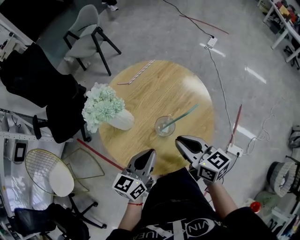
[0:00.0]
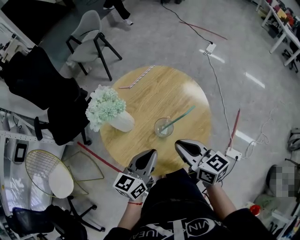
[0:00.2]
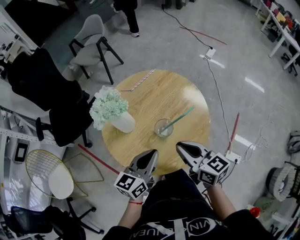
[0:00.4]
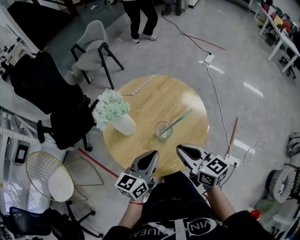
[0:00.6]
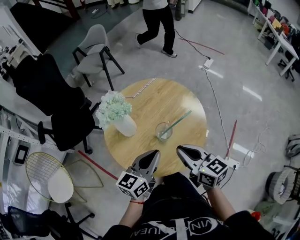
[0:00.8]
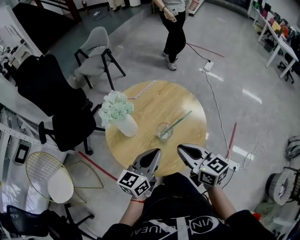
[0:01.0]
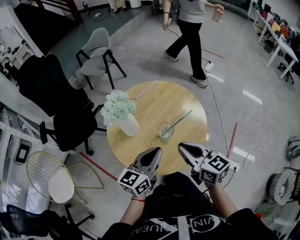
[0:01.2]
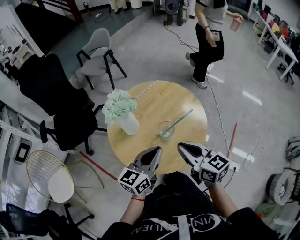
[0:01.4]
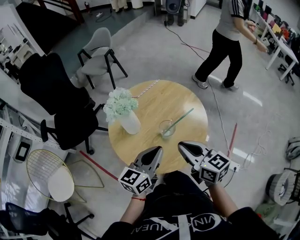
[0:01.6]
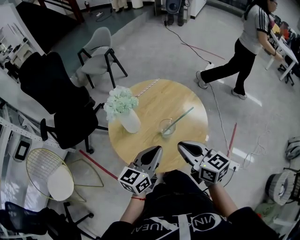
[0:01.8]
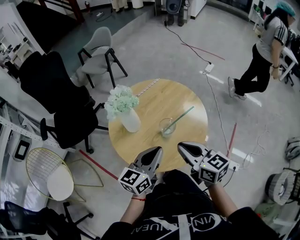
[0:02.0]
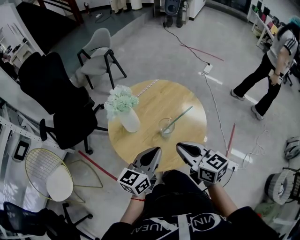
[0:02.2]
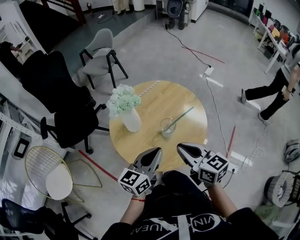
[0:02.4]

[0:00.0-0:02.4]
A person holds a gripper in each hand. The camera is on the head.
0.0 to 1.2 s: The two grippers go roughly 5 cm upward.
1.2 to 2.4 s: The grippers move only a little.

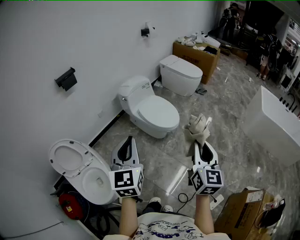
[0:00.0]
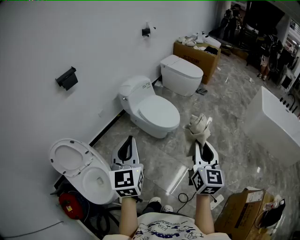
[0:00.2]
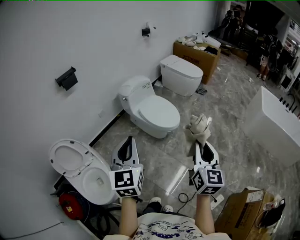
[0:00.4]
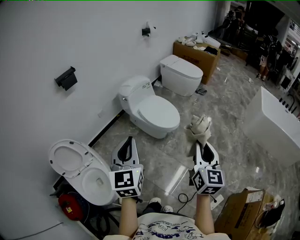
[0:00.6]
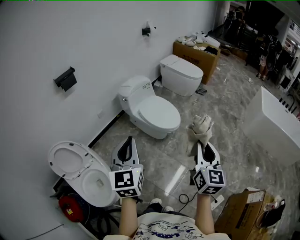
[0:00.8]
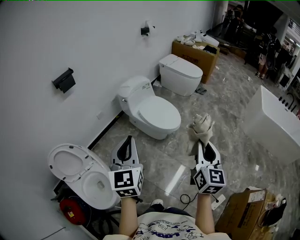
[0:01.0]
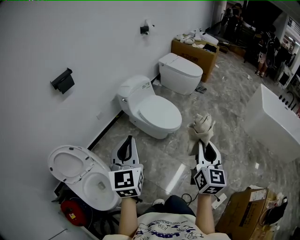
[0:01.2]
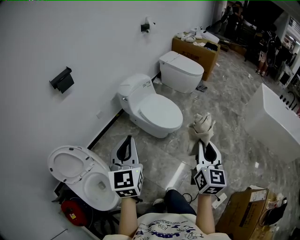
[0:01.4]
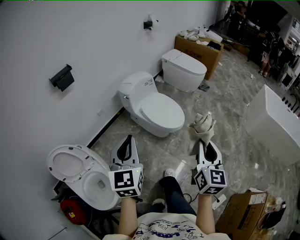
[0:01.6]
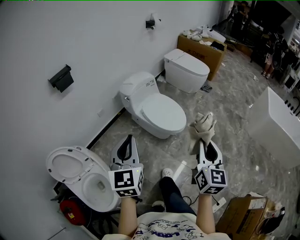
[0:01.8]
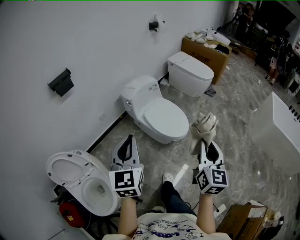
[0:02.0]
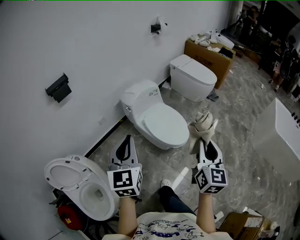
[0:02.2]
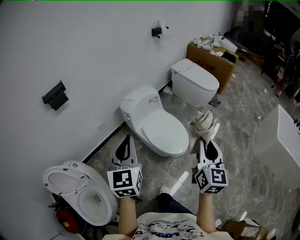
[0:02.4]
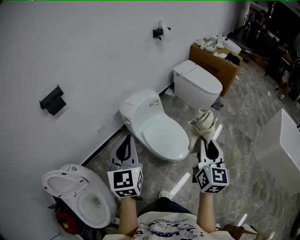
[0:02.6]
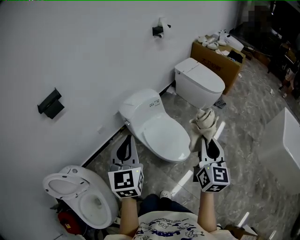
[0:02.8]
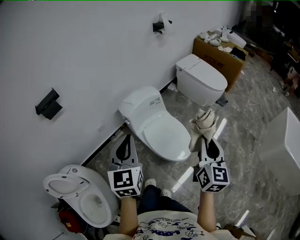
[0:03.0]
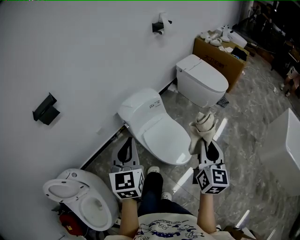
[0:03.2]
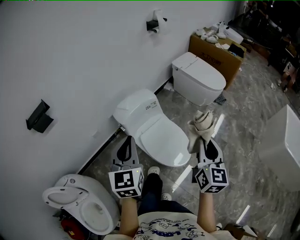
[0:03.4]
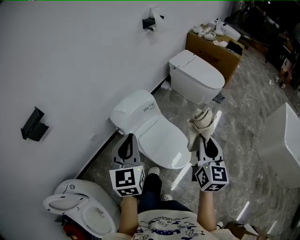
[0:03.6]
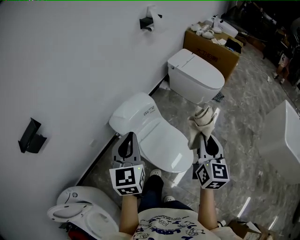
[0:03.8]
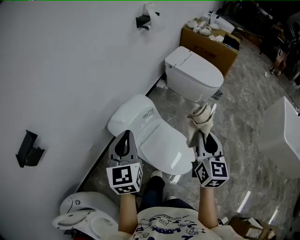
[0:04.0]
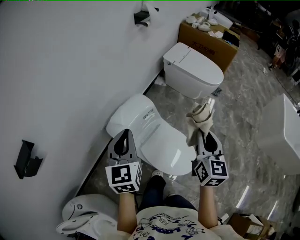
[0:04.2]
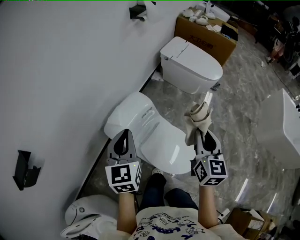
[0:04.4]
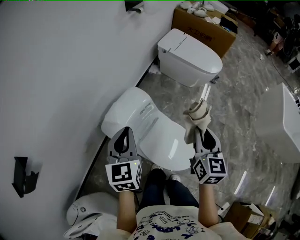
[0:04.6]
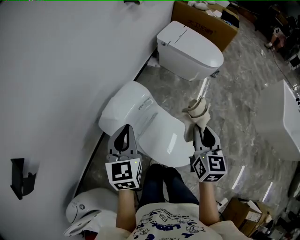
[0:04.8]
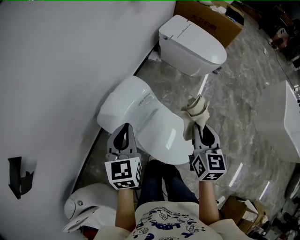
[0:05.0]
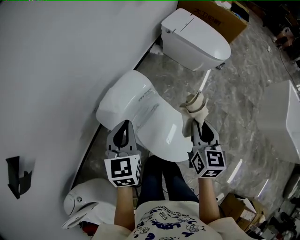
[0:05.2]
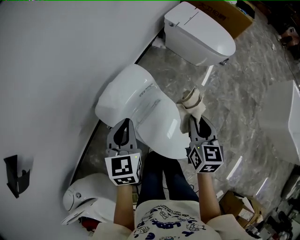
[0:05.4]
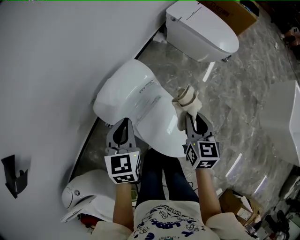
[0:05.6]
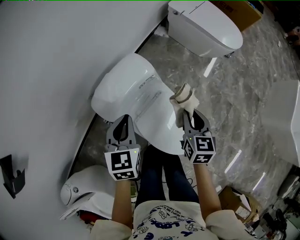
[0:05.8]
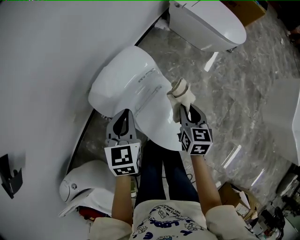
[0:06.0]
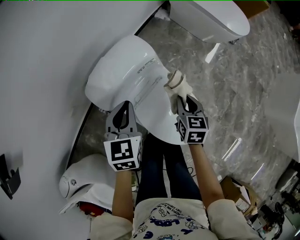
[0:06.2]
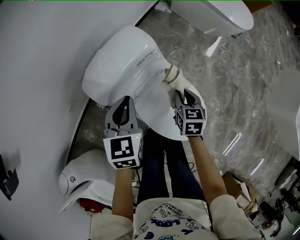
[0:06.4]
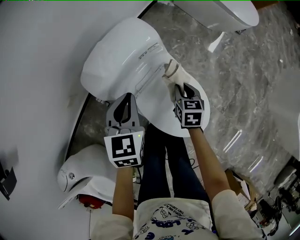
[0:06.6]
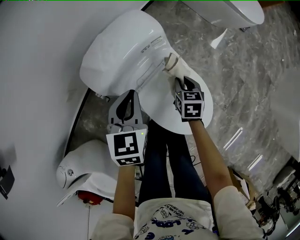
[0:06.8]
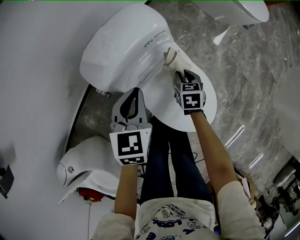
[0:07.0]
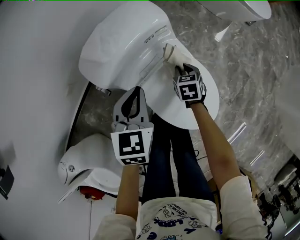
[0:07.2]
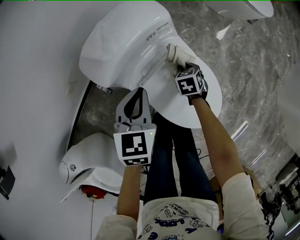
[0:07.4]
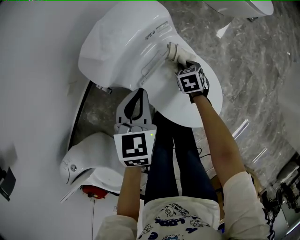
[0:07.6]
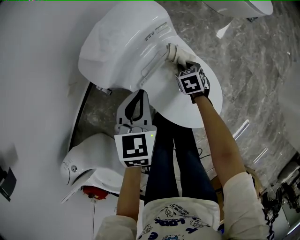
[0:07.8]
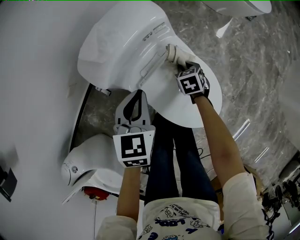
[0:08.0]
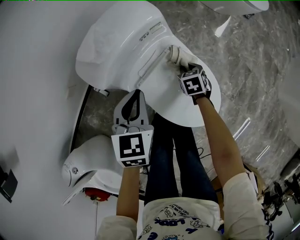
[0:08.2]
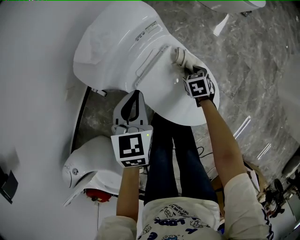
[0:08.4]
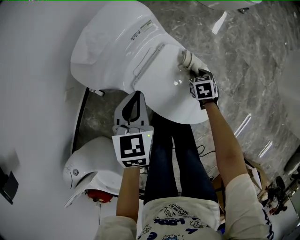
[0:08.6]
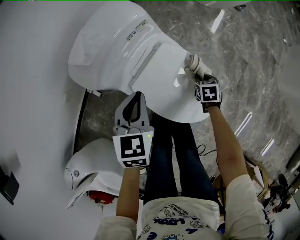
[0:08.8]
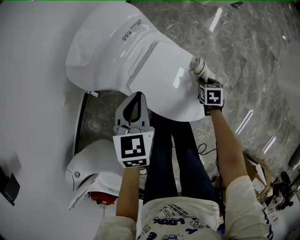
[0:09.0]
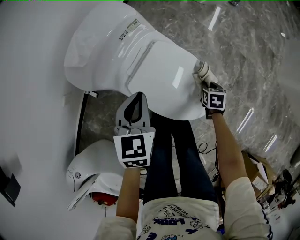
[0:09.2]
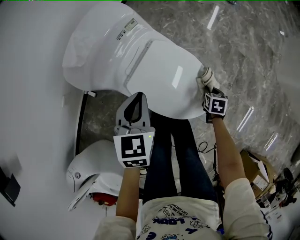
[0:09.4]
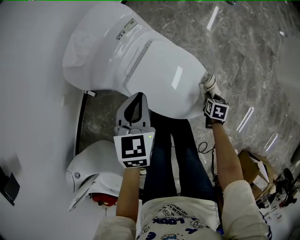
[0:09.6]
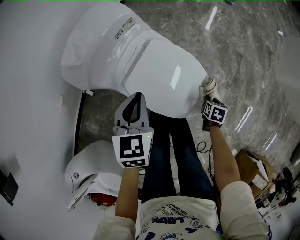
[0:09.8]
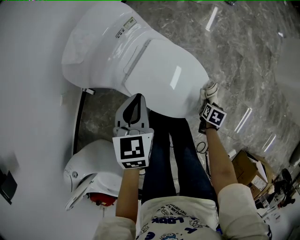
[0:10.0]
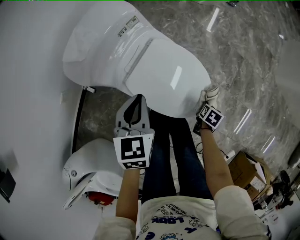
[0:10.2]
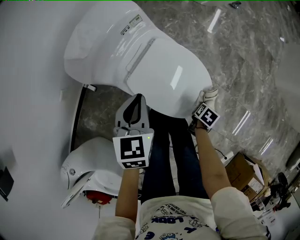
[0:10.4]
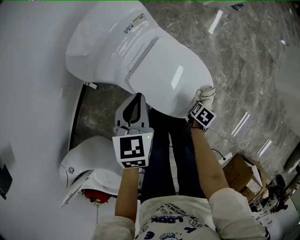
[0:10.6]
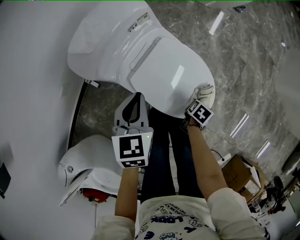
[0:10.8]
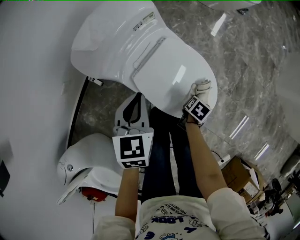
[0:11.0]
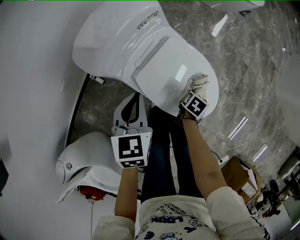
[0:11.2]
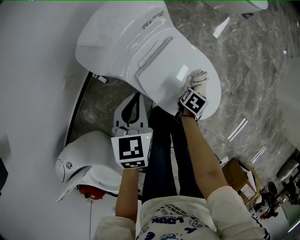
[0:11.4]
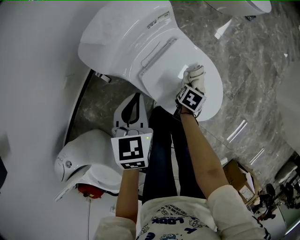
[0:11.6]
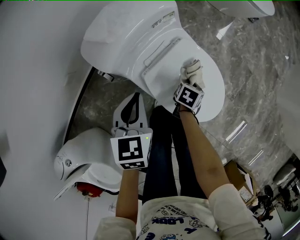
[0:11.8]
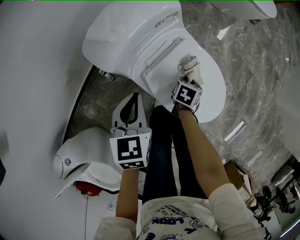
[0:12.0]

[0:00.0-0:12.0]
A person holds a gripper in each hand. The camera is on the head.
0.0 to 1.6 s: The two grippers go some 10 cm forward and to the left.
1.6 to 3.0 s: The two grippers go approximately 40 cm forward.
3.0 to 4.4 s: Both grippers move forward, about 30 cm.
4.4 to 6.0 s: Both grippers move downward, roughly 25 cm. The right gripper rotates roughly 30 degrees.
6.0 to 7.6 s: The right gripper heads downward, covering roughly 30 cm, and turns by roughly 30 degrees, while the left gripper travels downward by about 15 cm.
7.6 to 9.0 s: The left gripper is displaced to the right by about 5 cm. Meanwhile the right gripper heads to the right and backward, covering approximately 20 cm, and swivels about 20 degrees.
9.0 to 10.4 s: The right gripper changes place by about 15 cm, and rotates approximately 40 degrees.
10.4 to 12.0 s: The left gripper moves about 10 cm. Meanwhile the right gripper shifts by approximately 25 cm, and swivels about 30 degrees.

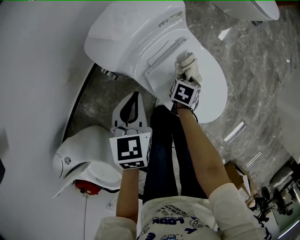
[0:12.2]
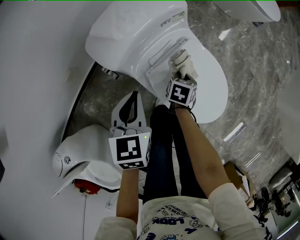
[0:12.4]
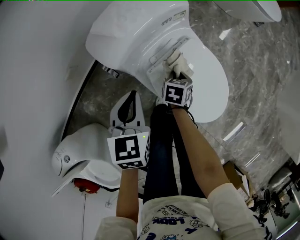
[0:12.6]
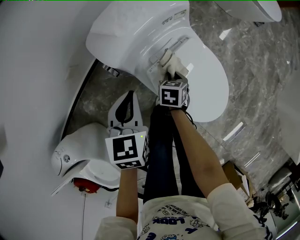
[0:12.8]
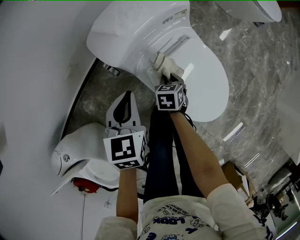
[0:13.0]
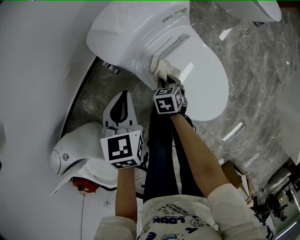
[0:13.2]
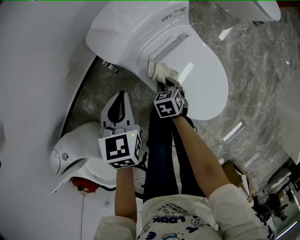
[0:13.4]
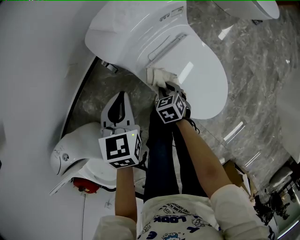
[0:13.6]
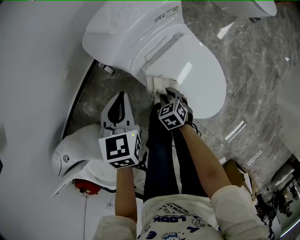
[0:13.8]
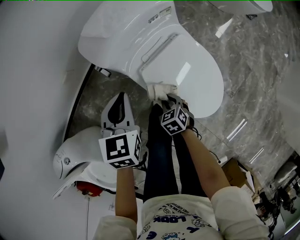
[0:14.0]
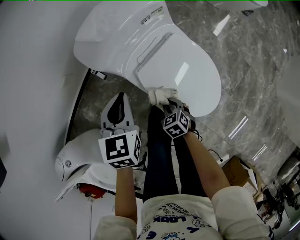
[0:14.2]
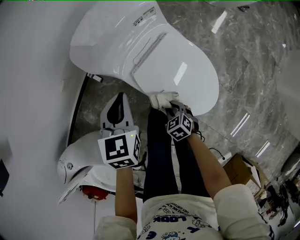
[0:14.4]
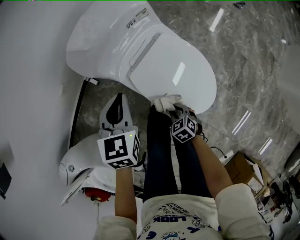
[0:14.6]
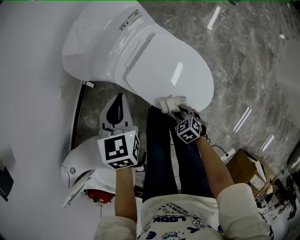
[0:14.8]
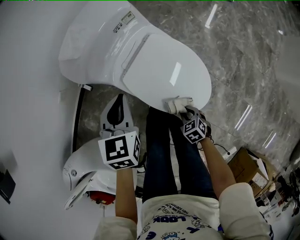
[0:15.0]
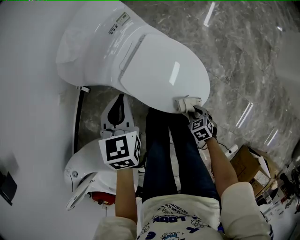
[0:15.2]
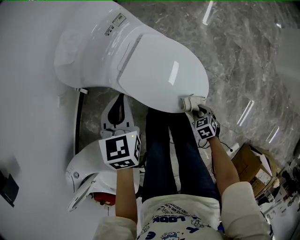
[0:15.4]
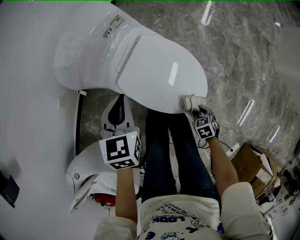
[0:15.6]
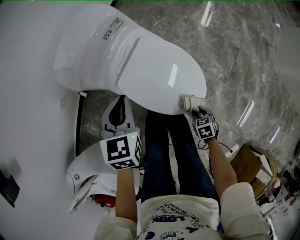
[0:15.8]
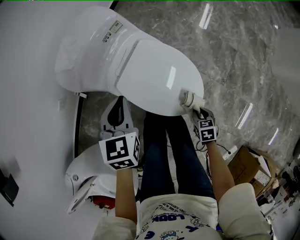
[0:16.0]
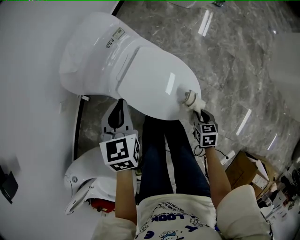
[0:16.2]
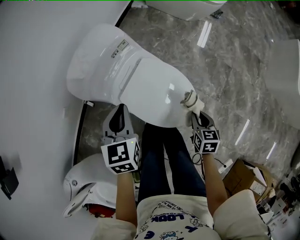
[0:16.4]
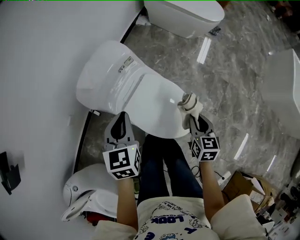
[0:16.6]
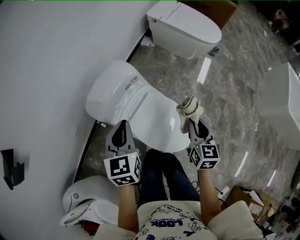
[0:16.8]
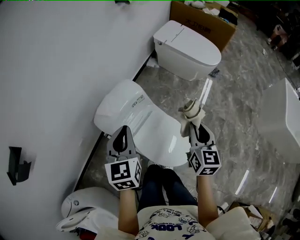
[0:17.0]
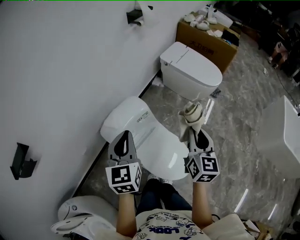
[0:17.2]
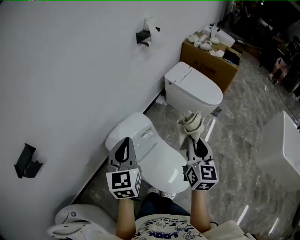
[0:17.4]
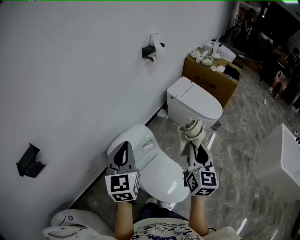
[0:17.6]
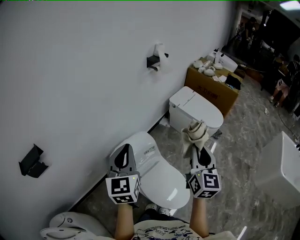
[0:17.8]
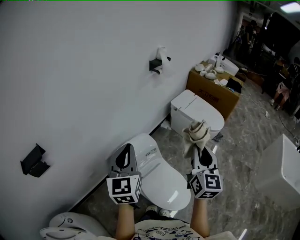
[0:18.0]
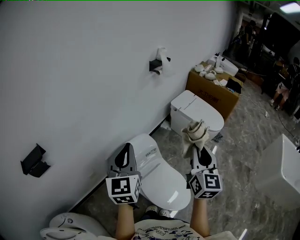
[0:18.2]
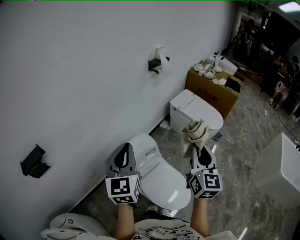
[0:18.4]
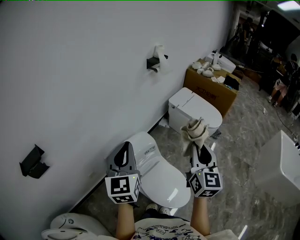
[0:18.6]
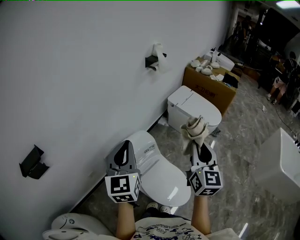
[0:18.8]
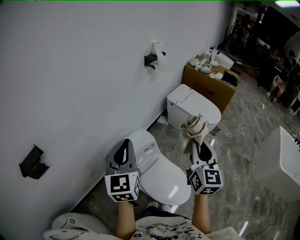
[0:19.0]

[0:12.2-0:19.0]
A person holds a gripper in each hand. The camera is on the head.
12.2 to 13.6 s: The left gripper changes place by roughly 5 cm. Meanwhile the right gripper moves some 15 cm, and twists roughly 40 degrees counterclockwise, seen from behind.
13.6 to 15.0 s: The left gripper travels to the right by roughly 10 cm, while the right gripper travels backward and to the right by about 25 cm.
15.0 to 16.2 s: The right gripper moves roughly 15 cm, and turns by about 40 degrees; the left gripper ends up roughly 5 cm from where it was.
16.2 to 17.6 s: Both grippers travel together upward, about 50 cm. The left gripper angles its fingers upward, by about 30 degrees. The right gripper tips its fingers upward by some 60 degrees.
17.6 to 19.0 s: Both grippers move upward, roughly 5 cm.

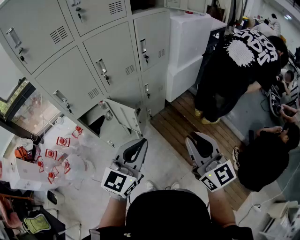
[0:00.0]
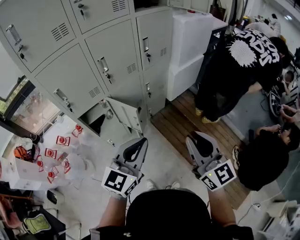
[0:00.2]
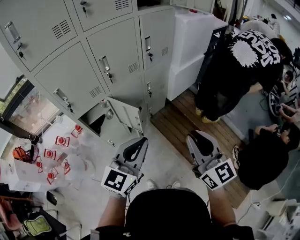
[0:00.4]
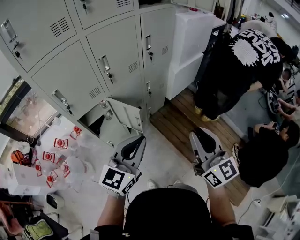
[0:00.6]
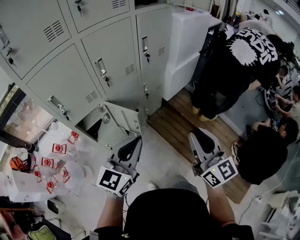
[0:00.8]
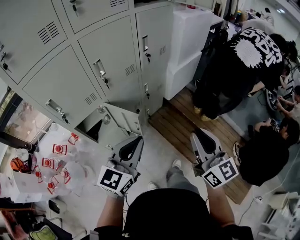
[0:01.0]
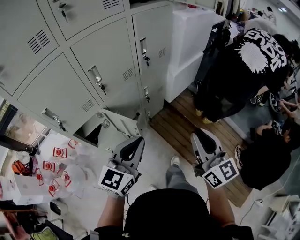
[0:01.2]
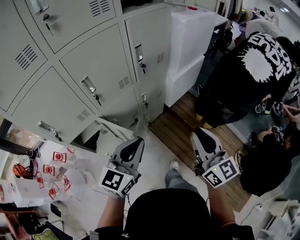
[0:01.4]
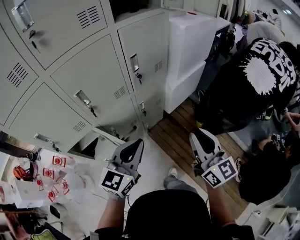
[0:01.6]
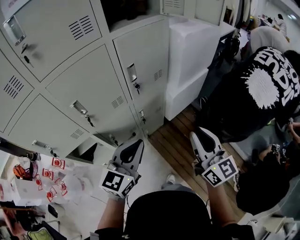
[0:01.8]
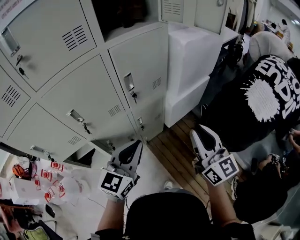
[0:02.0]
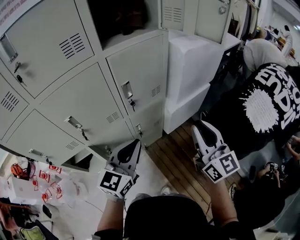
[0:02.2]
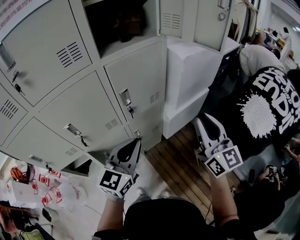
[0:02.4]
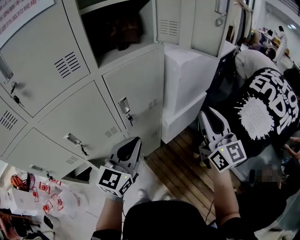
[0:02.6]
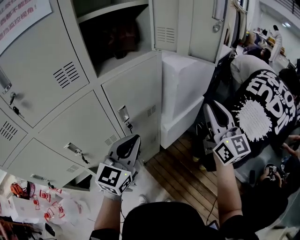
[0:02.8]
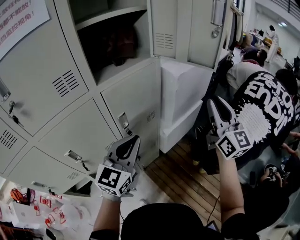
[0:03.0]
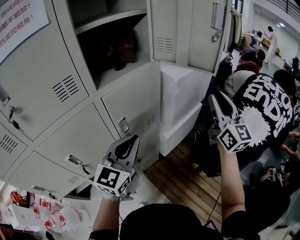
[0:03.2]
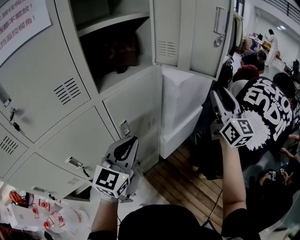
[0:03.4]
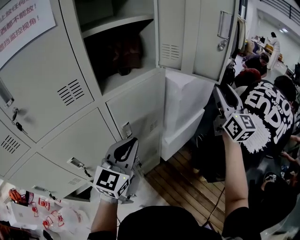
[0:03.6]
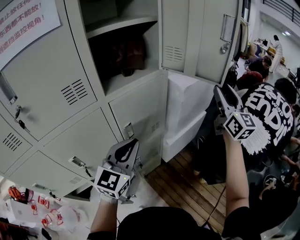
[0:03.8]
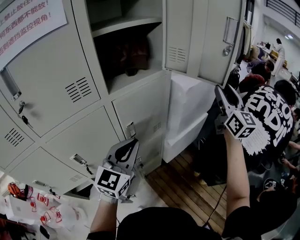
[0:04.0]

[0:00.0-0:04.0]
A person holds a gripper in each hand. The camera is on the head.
0.0 to 1.4 s: The two grippers go roughly 15 cm forward.
1.4 to 2.6 s: The left gripper heads forward, covering about 25 cm. Meanwhile the right gripper is displaced forward, to the right and upward by approximately 35 cm.
2.6 to 4.0 s: The left gripper moves forward and upward, roughly 10 cm; the right gripper moves forward and upward, roughly 20 cm, and opens up.
